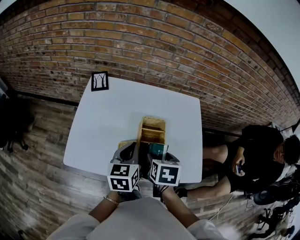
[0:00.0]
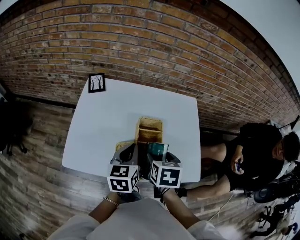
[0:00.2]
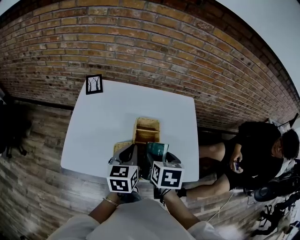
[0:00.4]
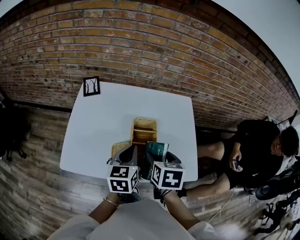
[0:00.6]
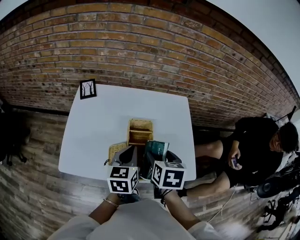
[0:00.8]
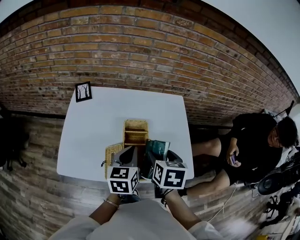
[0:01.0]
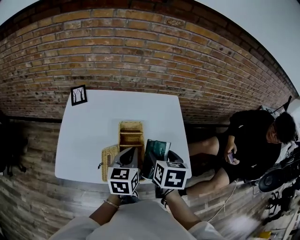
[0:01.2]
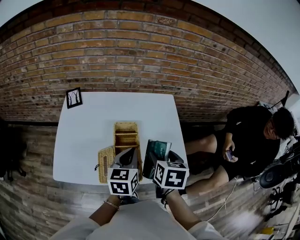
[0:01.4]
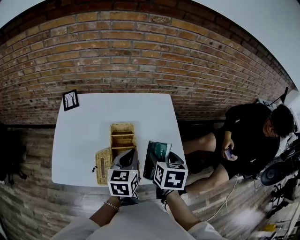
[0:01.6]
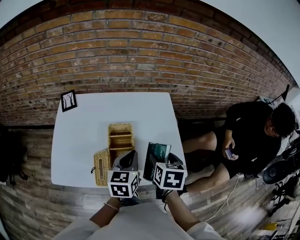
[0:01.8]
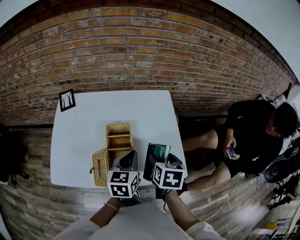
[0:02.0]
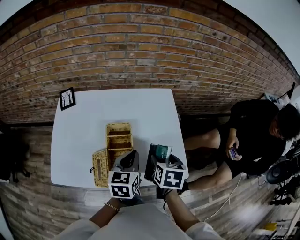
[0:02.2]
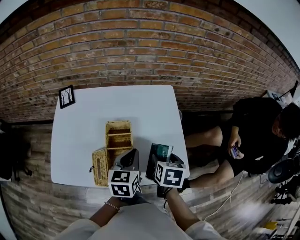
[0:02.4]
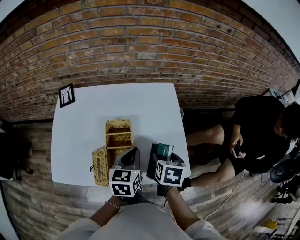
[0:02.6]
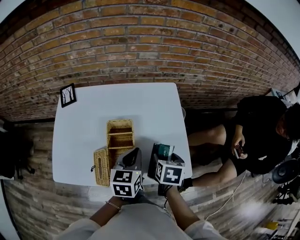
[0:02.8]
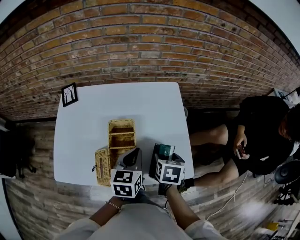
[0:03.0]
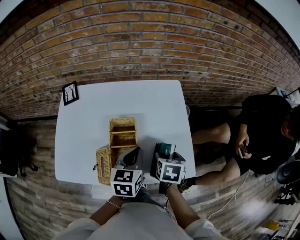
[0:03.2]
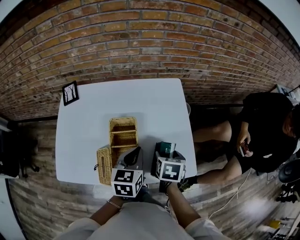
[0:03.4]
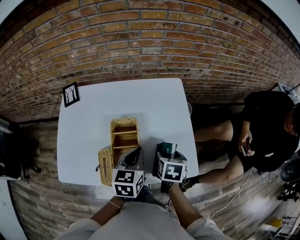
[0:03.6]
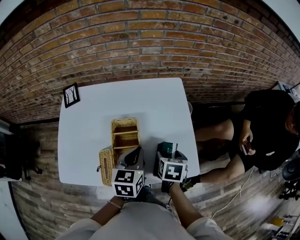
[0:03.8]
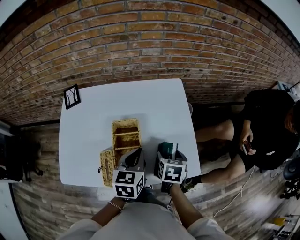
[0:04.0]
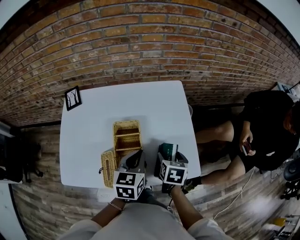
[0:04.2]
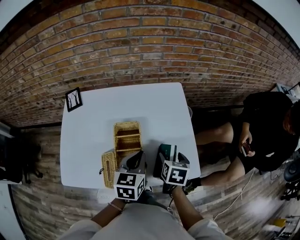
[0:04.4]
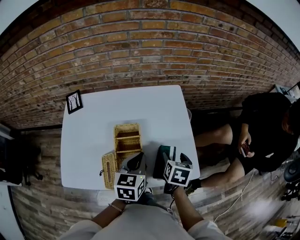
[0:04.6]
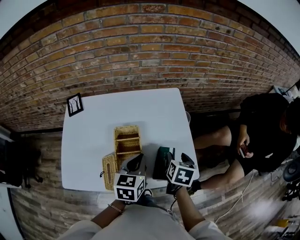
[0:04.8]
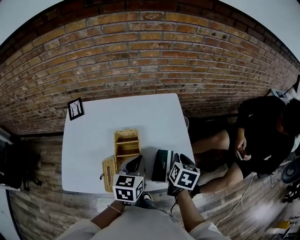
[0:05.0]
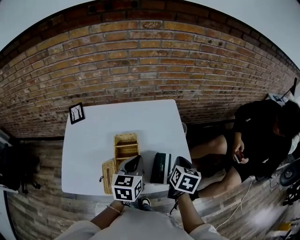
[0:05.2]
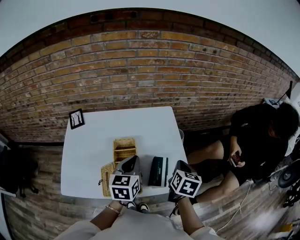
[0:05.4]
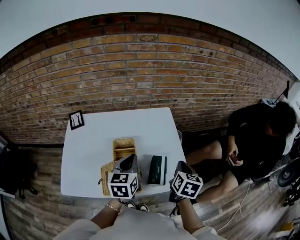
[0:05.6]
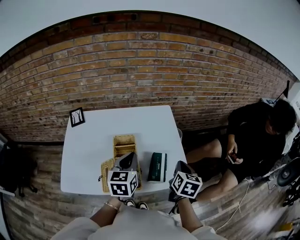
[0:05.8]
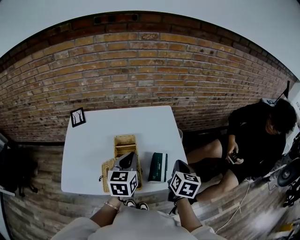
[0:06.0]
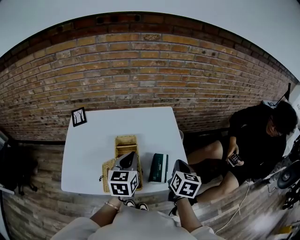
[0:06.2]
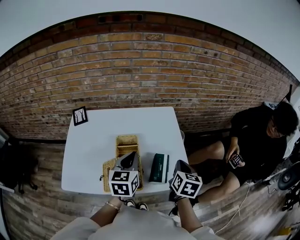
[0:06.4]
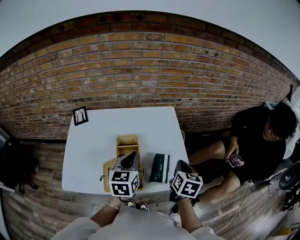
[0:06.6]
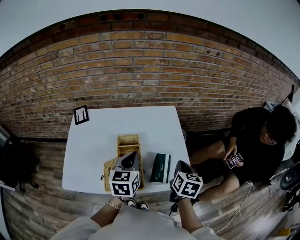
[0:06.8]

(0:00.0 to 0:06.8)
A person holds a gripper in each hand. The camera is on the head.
0:00.0 - 0:01.4: The right gripper shifts approximately 15 cm to the right and upward. The left gripper travels to the right by approximately 10 cm.
0:01.4 - 0:02.8: The right gripper goes approximately 10 cm downward and to the right. Meanwhile the left gripper ends up roughly 5 cm from where it was.
0:02.8 - 0:04.0: There are only small adjustments of the grippers.
0:04.0 - 0:05.4: The left gripper goes some 5 cm upward. Meanwhile the right gripper goes approximately 15 cm upward and to the right, turns by roughly 20 degrees, and closes.
0:05.4 - 0:06.8: The grippers stay close to where they were, moving slightly.

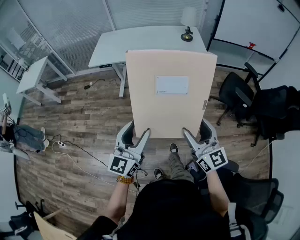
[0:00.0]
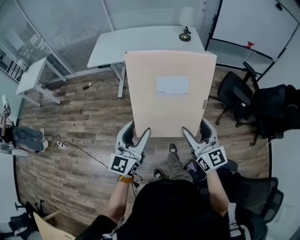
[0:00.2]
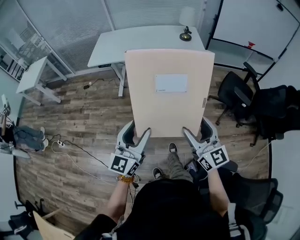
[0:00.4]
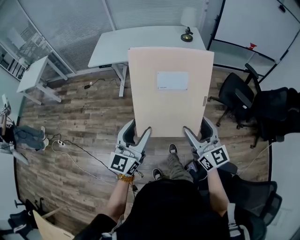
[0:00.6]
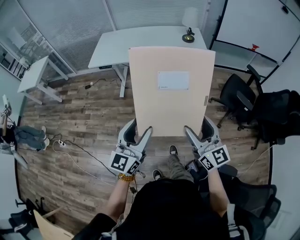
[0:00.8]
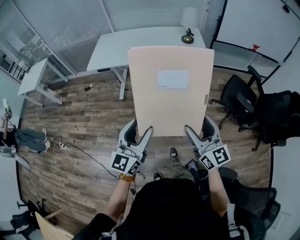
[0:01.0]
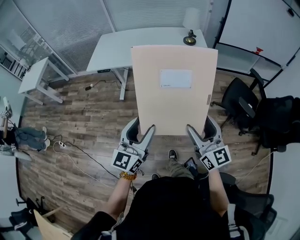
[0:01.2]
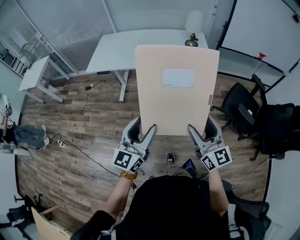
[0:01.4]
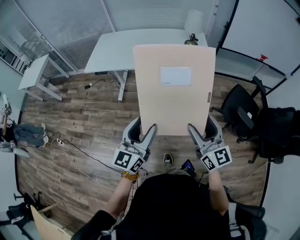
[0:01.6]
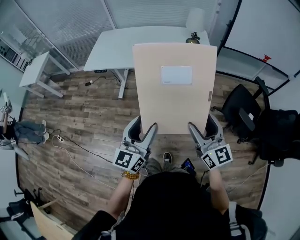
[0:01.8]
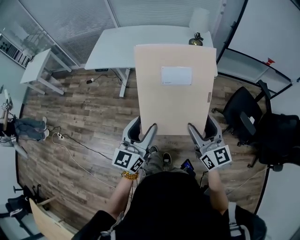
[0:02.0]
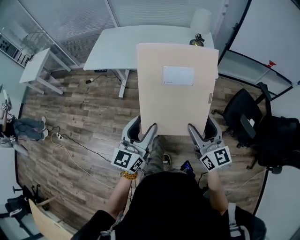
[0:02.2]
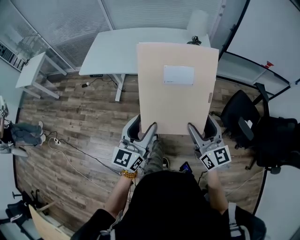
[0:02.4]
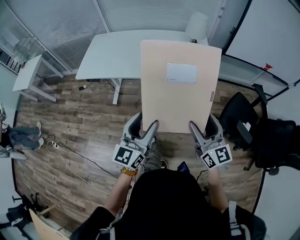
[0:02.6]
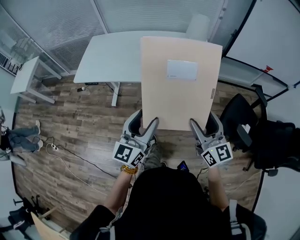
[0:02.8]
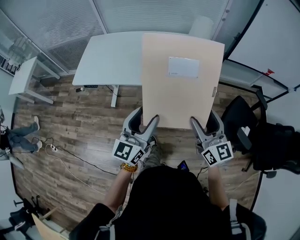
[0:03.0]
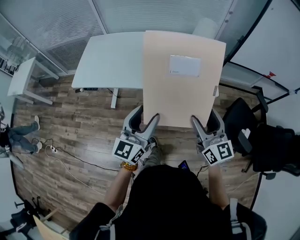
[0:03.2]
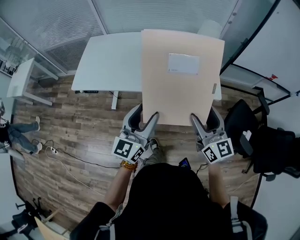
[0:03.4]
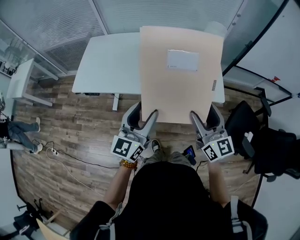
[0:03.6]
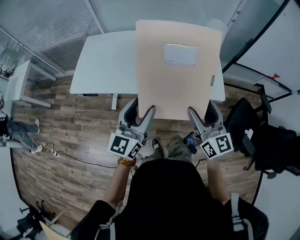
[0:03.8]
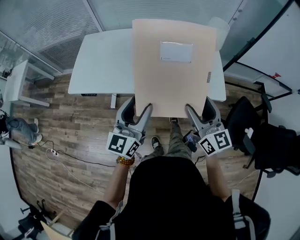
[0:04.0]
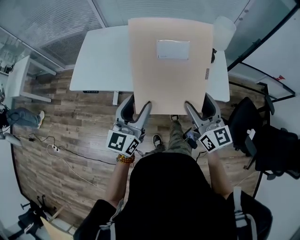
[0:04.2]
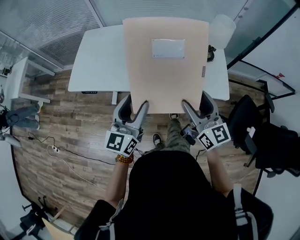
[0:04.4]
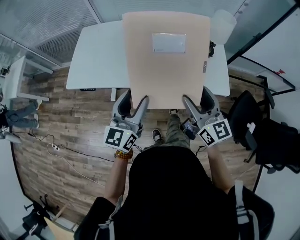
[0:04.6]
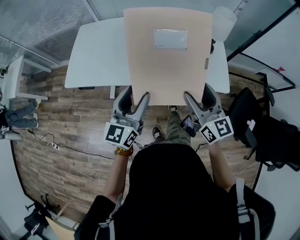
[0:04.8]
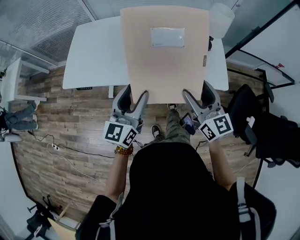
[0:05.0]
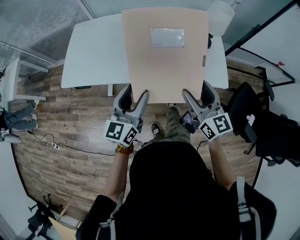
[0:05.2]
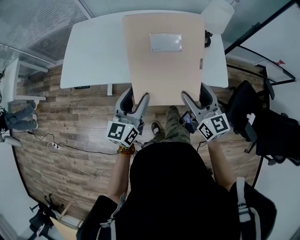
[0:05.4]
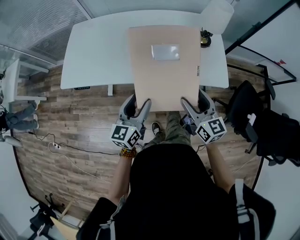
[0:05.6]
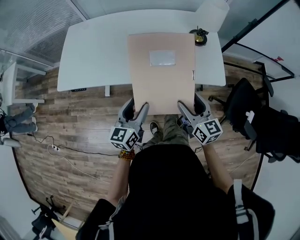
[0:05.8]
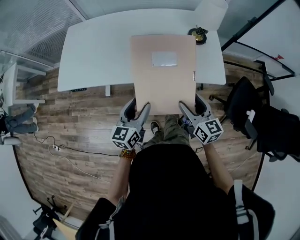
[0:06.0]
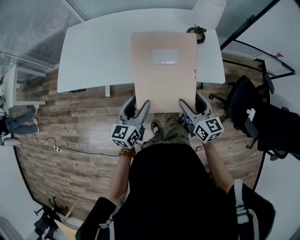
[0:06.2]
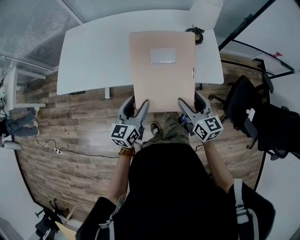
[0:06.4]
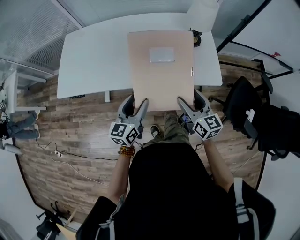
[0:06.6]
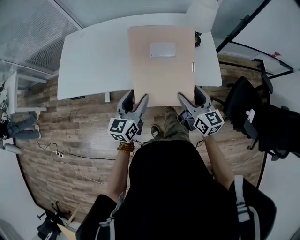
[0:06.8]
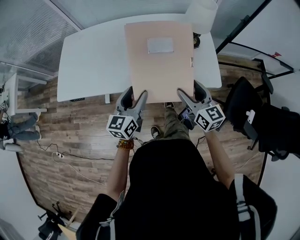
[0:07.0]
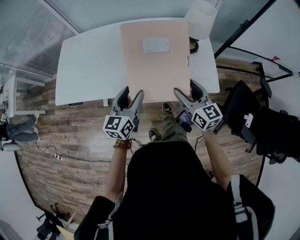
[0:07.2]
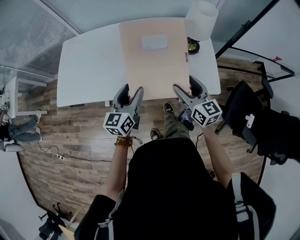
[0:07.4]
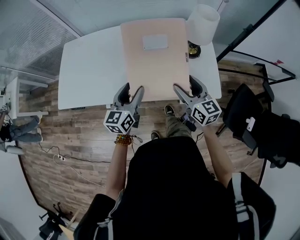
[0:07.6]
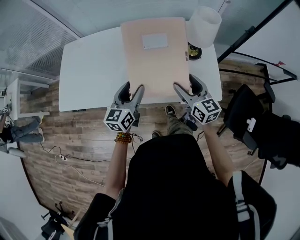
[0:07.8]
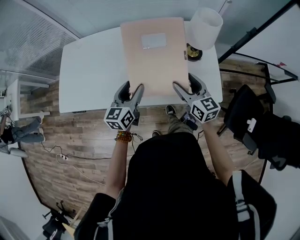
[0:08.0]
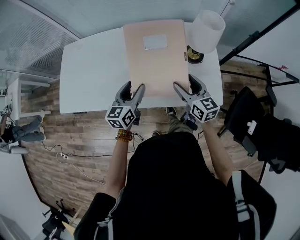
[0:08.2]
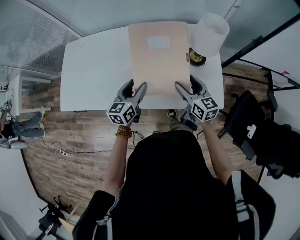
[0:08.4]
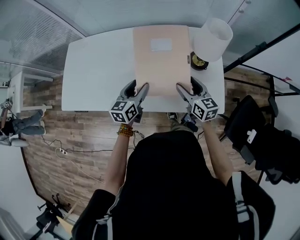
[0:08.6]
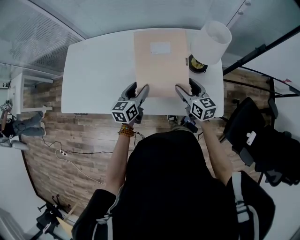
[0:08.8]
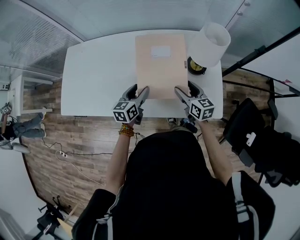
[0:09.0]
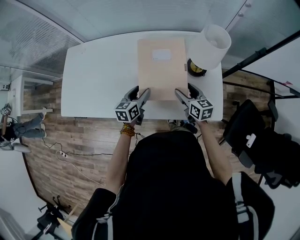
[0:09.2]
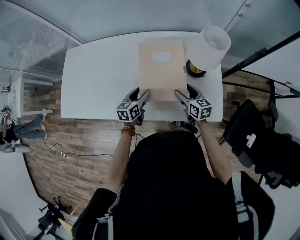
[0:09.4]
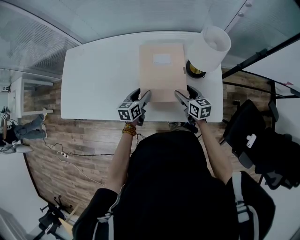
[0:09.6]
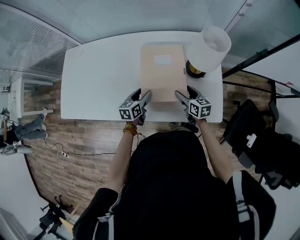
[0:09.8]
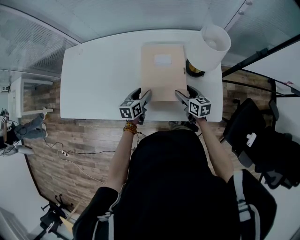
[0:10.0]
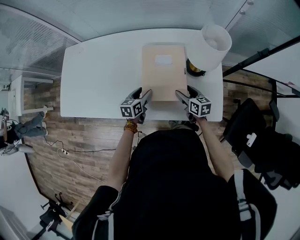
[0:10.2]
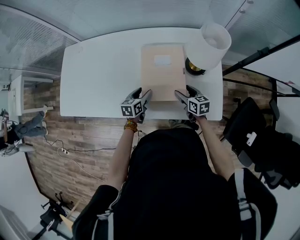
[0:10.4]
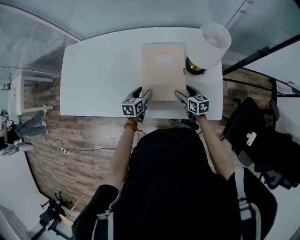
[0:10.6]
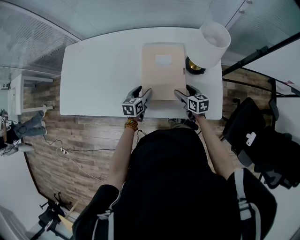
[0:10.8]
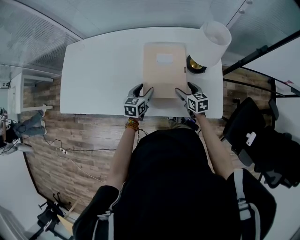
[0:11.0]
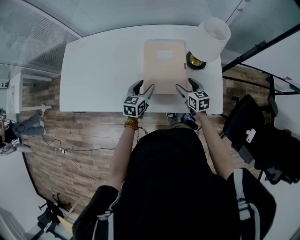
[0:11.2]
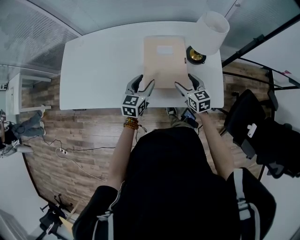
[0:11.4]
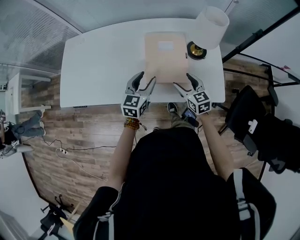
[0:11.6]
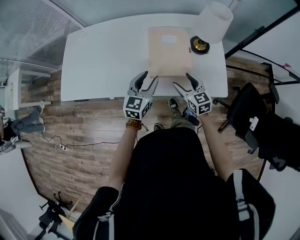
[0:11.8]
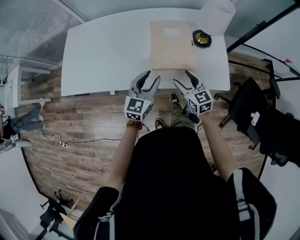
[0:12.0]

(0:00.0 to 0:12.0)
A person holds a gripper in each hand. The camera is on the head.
0:00.0 - 0:01.6: The two grippers go roughly 20 cm forward and to the right.
0:01.6 - 0:03.0: Both grippers move forward, approximately 25 cm.
0:03.0 - 0:04.4: Both grippers move forward and to the left, about 20 cm.
0:04.4 - 0:06.0: The left gripper is displaced downward by roughly 15 cm, and swivels roughly 20 degrees. Meanwhile the right gripper heads downward and to the right, covering approximately 15 cm.
0:06.0 - 0:07.6: The grippers both shift forward by approximately 15 cm.
0:07.6 - 0:09.0: The grippers both shift forward and downward by approximately 15 cm.
0:09.0 - 0:10.4: Both grippers move downward, about 10 cm.
0:10.4 - 0:12.0: The left gripper goes some 20 cm upward and backward, and changes its angle by some 40 degrees, while the right gripper travels backward, upward and to the left by roughly 20 cm, and rotates about 30 degrees.

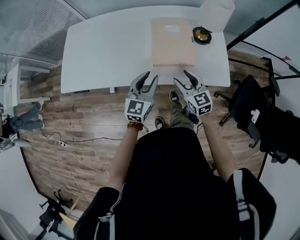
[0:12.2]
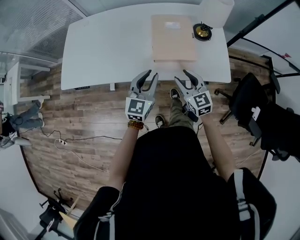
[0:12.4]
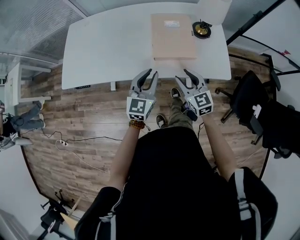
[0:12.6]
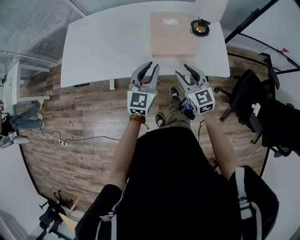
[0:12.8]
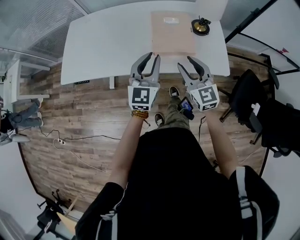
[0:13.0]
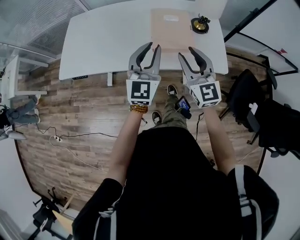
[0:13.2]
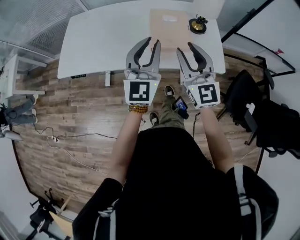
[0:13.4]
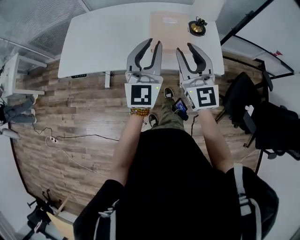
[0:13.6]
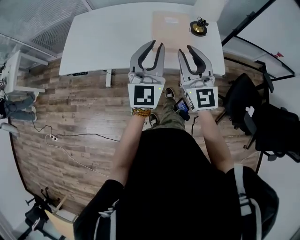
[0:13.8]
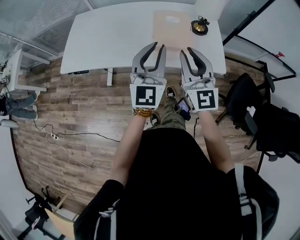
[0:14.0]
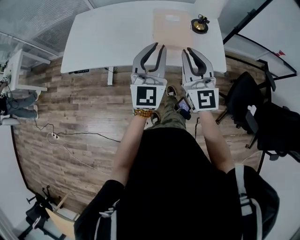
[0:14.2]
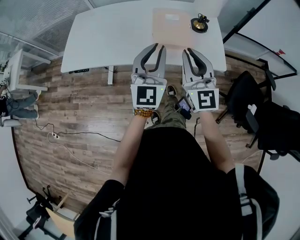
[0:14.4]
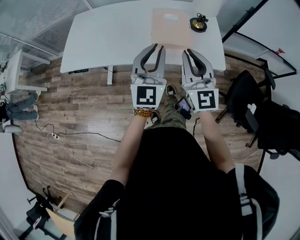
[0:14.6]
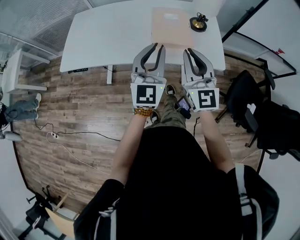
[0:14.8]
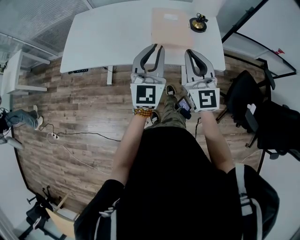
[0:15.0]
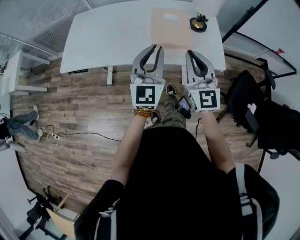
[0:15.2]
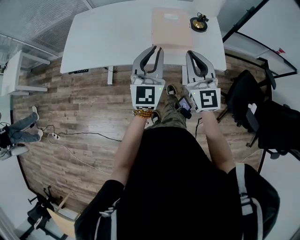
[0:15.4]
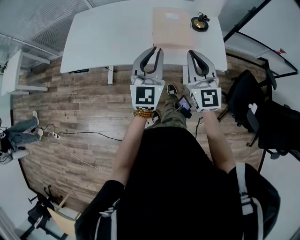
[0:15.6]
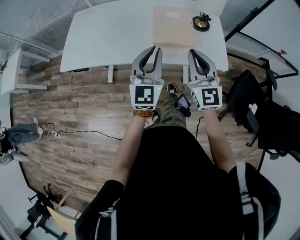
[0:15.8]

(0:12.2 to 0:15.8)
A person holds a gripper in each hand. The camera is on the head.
0:12.2 - 0:14.0: The two grippers go some 20 cm upward and backward. The right gripper turns by about 30 degrees, and closes, while the left gripper rotates some 30 degrees.
0:14.0 - 0:15.8: The left gripper moves roughly 5 cm.

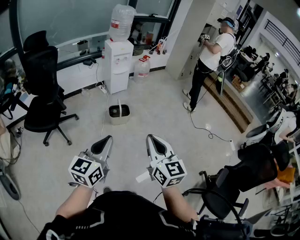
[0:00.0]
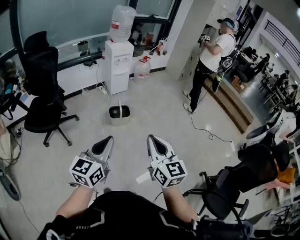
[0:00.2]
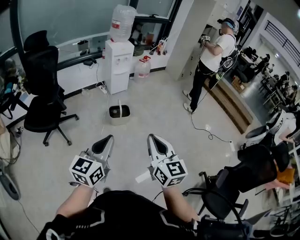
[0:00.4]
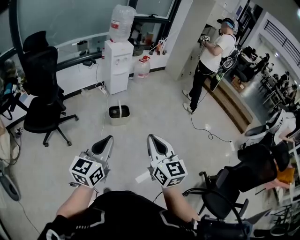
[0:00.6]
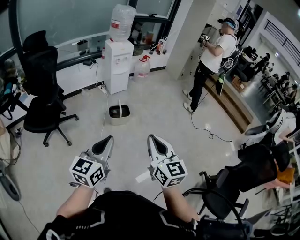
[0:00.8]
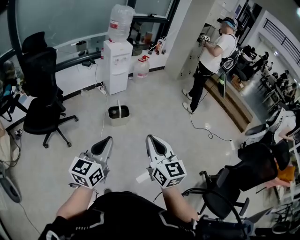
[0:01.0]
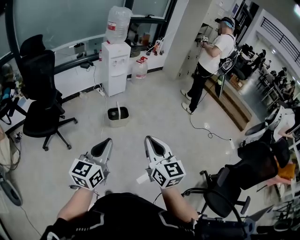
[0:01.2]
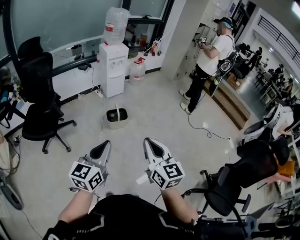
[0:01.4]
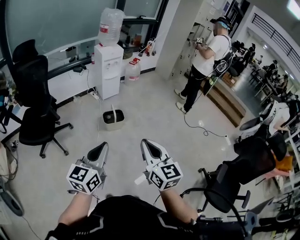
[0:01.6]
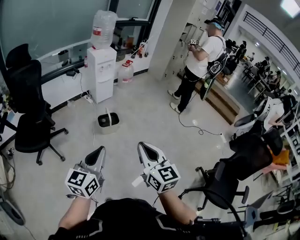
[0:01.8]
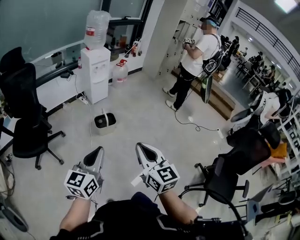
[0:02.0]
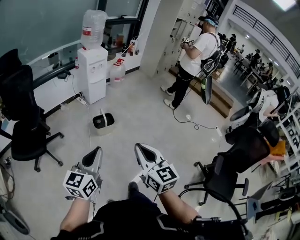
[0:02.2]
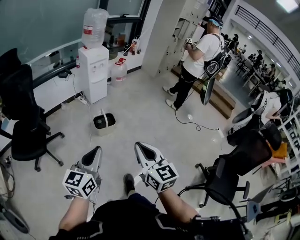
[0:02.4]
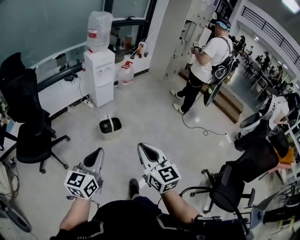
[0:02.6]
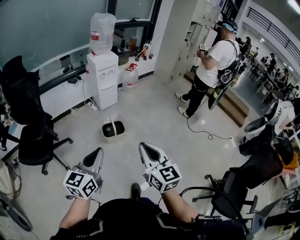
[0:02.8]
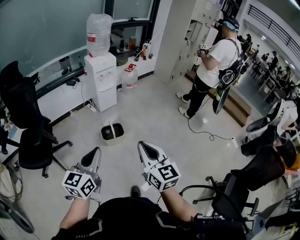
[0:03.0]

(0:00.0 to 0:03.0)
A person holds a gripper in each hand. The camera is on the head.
0:00.0 - 0:01.6: The grippers move only a little.
0:01.6 - 0:03.0: The two grippers go about 20 cm forward.
